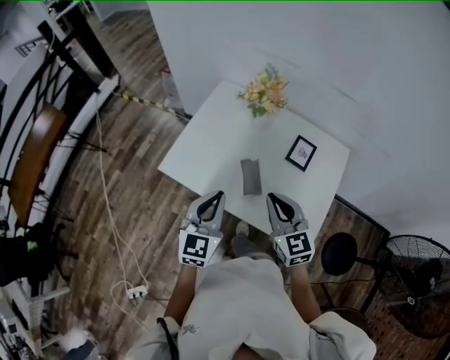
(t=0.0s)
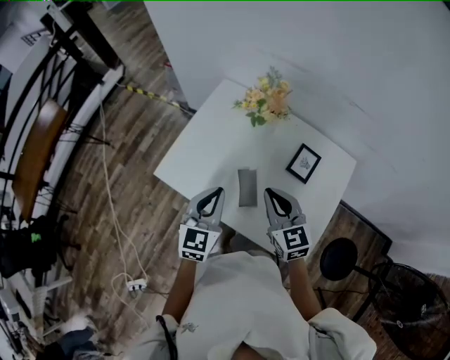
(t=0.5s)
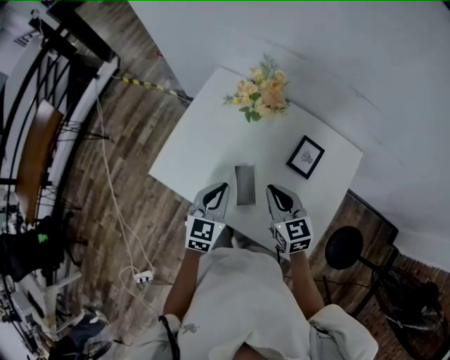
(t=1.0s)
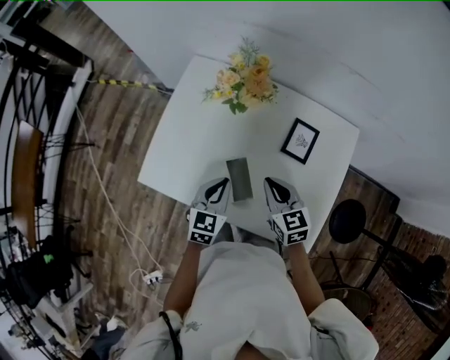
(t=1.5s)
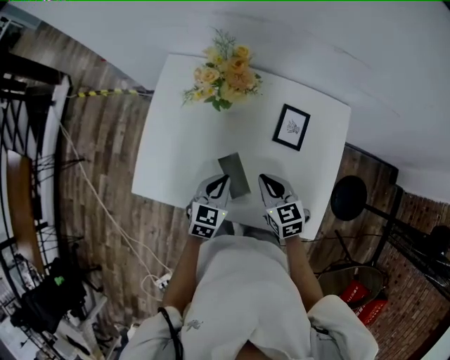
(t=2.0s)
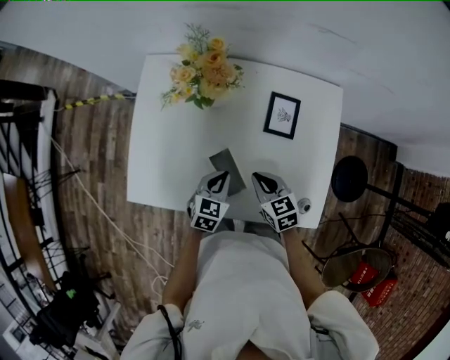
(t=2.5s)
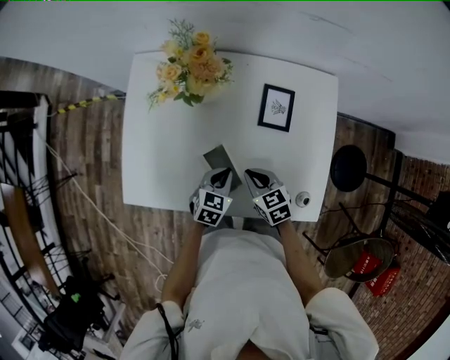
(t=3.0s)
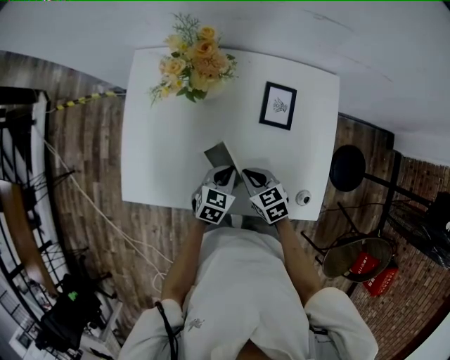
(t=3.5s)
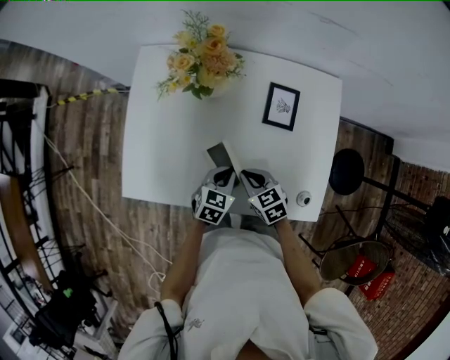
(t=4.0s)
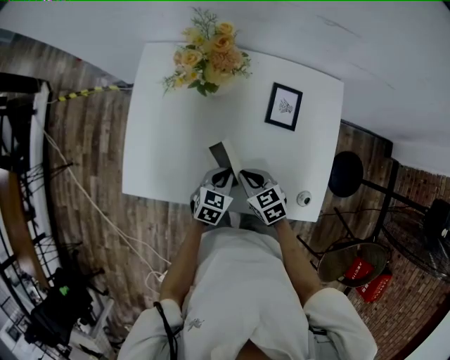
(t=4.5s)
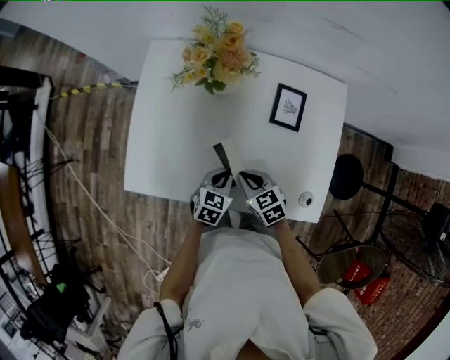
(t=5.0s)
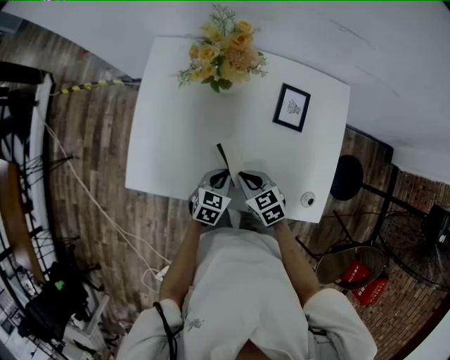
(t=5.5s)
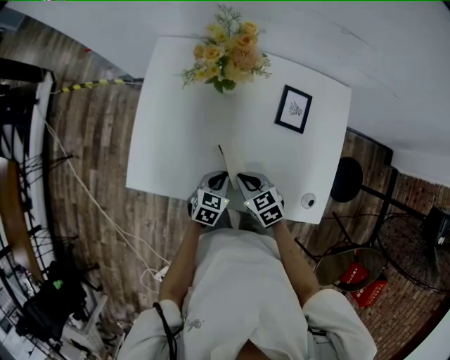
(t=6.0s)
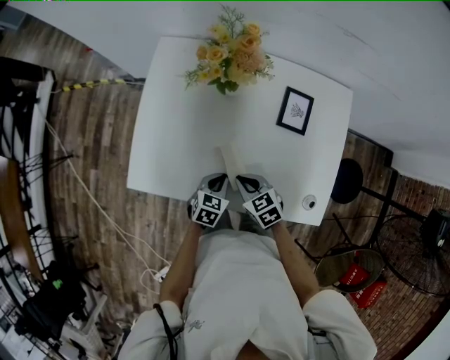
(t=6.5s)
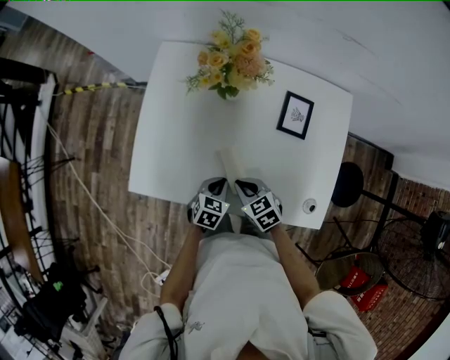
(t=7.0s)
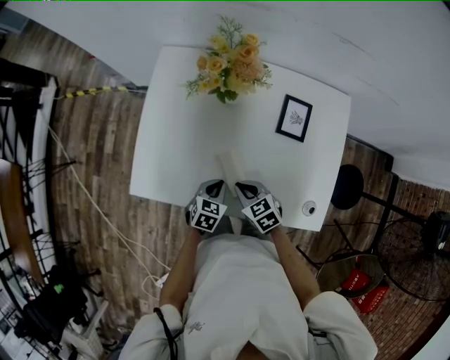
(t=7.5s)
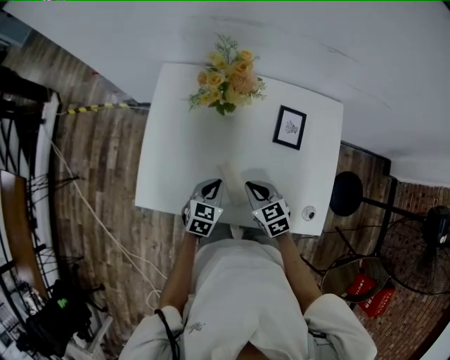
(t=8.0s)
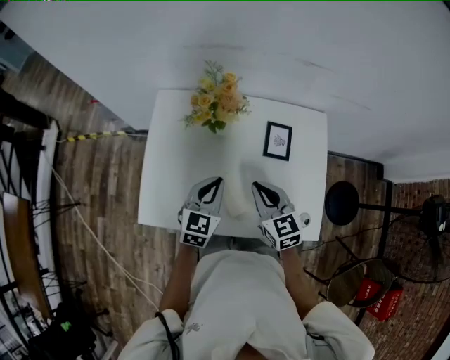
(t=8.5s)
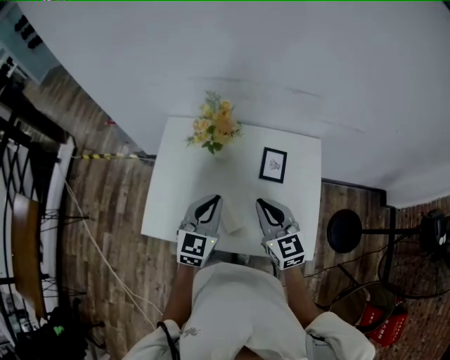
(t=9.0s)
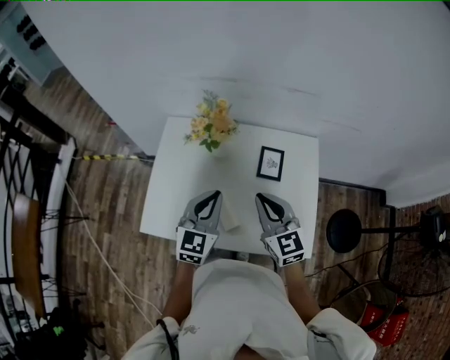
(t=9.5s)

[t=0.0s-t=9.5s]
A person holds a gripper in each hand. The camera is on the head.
t=0.0s to t=2.0s: The right gripper moves downward and forward, some 20 cm, and changes its angle by approximately 30 degrees, while the left gripper goes some 25 cm downward, forward and to the right, and rotates approximately 30 degrees.
t=2.0s to t=4.0s: Both grippers move downward, some 5 cm.
t=4.0s to t=5.5s: The left gripper shifts by approximately 5 cm.
t=5.5s to t=7.5s: There are only small adjustments of the grippers.
t=7.5s to t=9.5s: Both grippers travel together upward, roughly 30 cm. The right gripper tilts its fingers some 40 degrees upward. Meanwhile the left gripper tilts its fingers approximately 40 degrees upward.

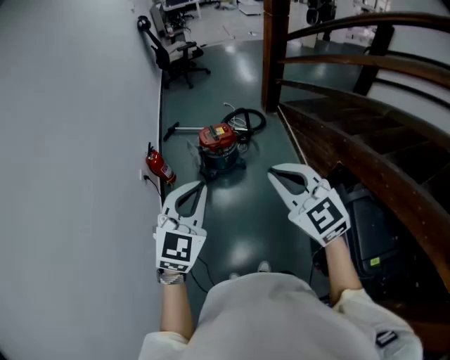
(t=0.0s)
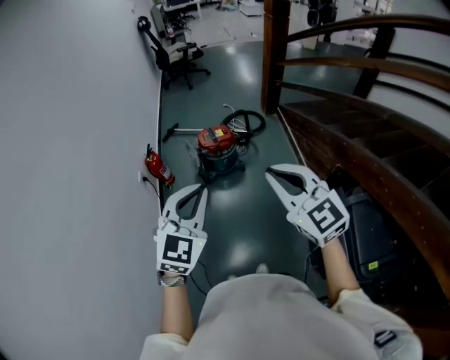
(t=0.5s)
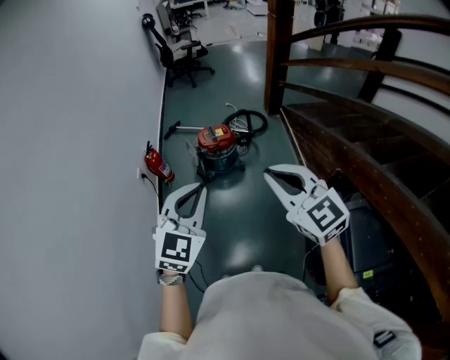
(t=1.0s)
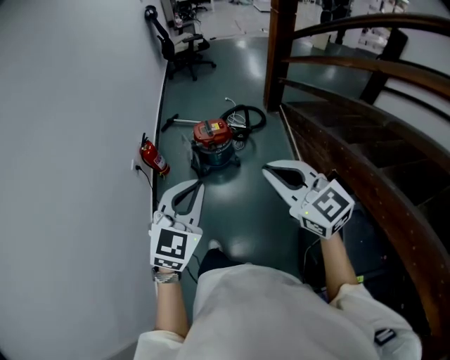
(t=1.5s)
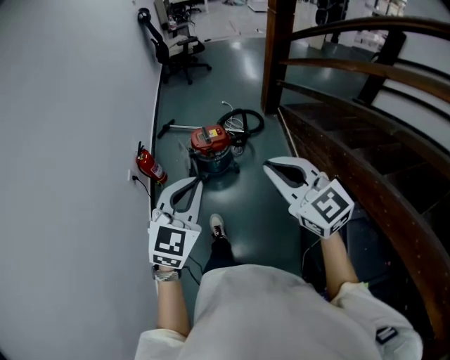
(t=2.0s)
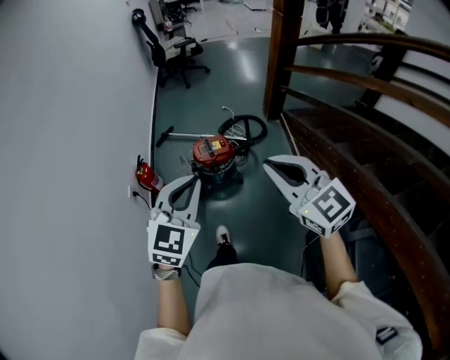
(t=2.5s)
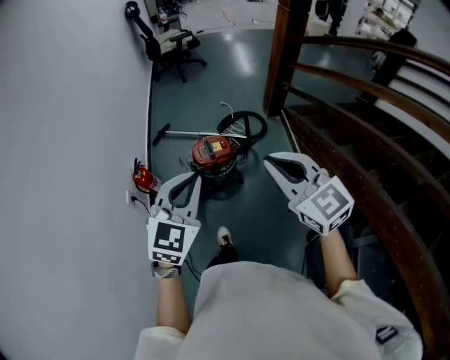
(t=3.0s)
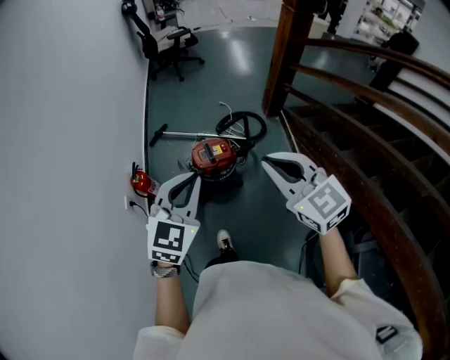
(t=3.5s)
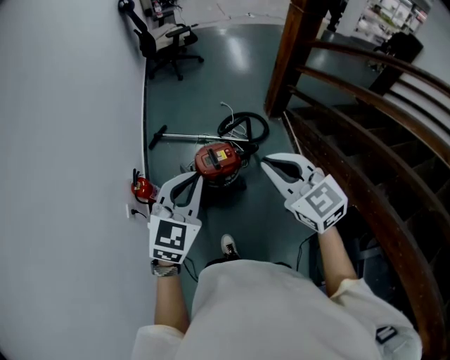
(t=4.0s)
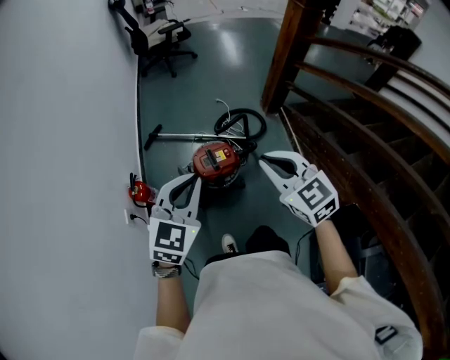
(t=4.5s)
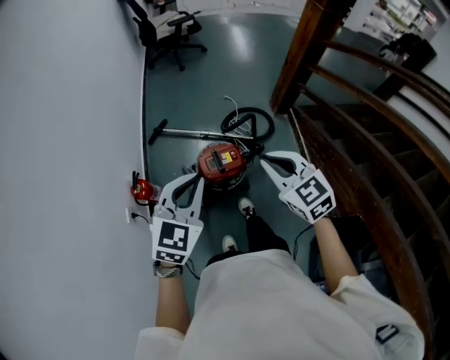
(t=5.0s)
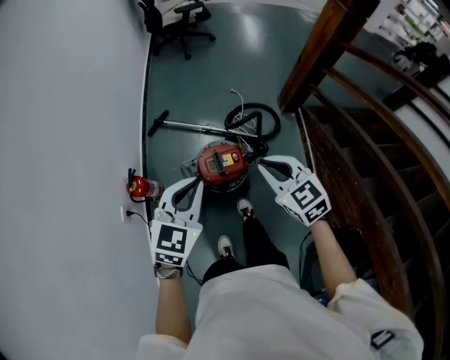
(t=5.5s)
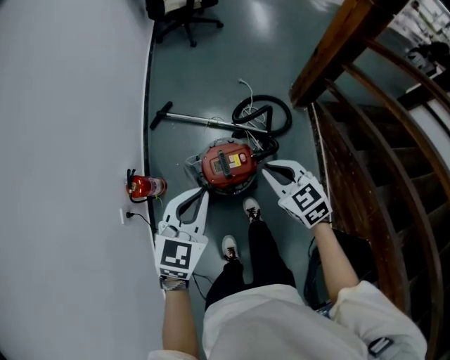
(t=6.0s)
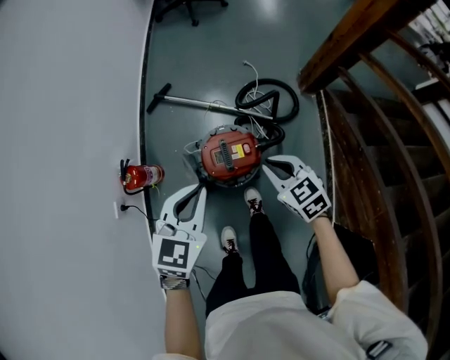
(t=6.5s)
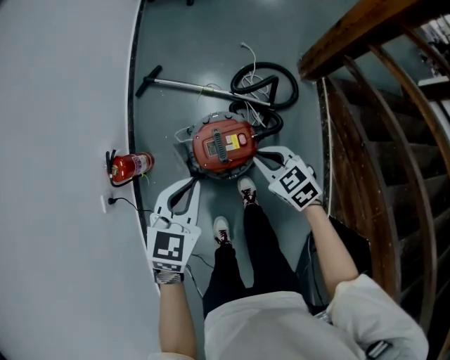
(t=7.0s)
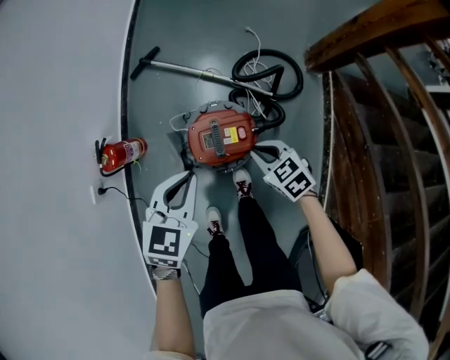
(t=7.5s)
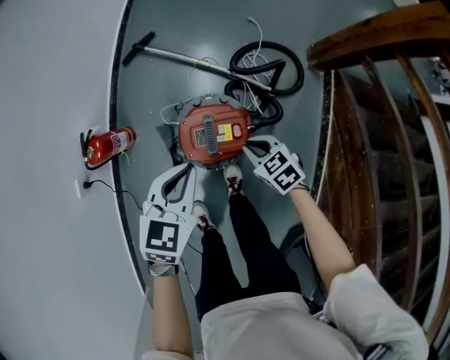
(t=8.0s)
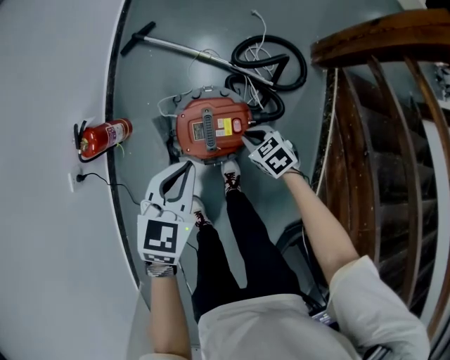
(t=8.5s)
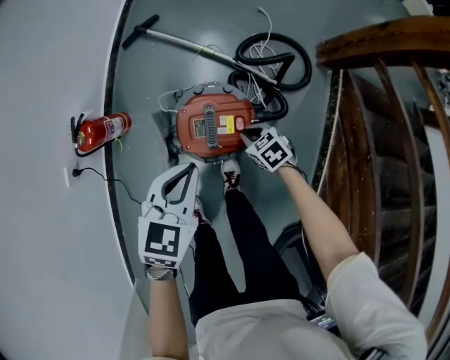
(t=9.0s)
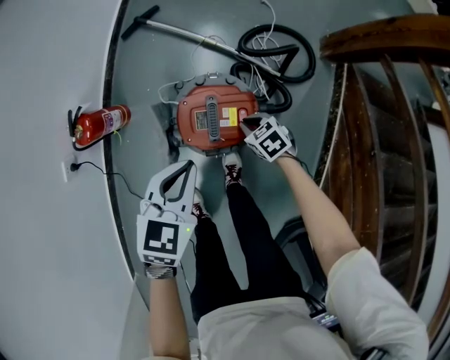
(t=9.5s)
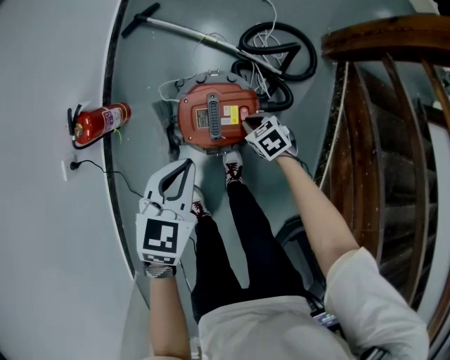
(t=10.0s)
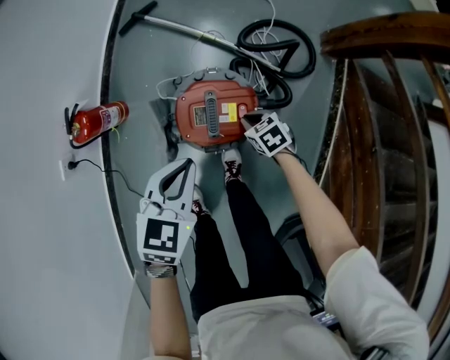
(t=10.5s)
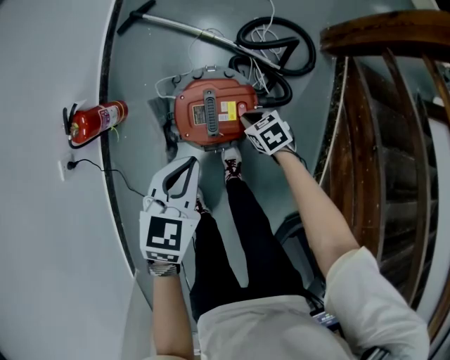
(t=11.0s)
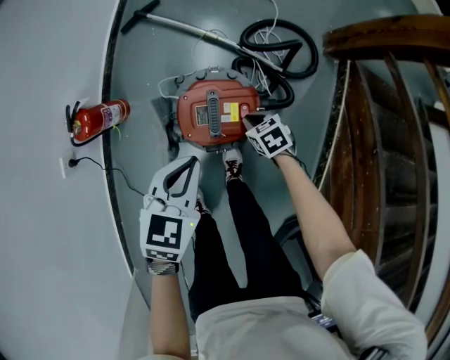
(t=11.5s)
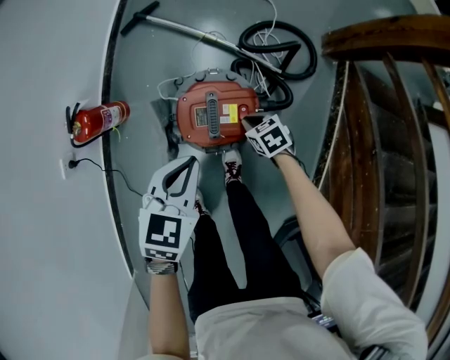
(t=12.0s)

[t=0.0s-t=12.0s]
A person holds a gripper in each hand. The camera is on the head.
t=0.0s to t=2.0s: The grippers both shift forward and to the right by approximately 10 cm.
t=2.0s to t=4.0s: The two grippers go approximately 35 cm forward.
t=4.0s to t=6.0s: The right gripper goes roughly 35 cm downward and forward, and swivels about 20 degrees. Meanwhile the left gripper shifts about 25 cm forward and downward.
t=6.0s to t=8.0s: The grippers both shift downward by some 25 cm. The right gripper turns by about 30 degrees, while the left gripper turns by roughly 20 degrees.
t=8.0s to t=10.0s: The right gripper travels downward by roughly 15 cm, while the left gripper shifts approximately 5 cm downward.
t=10.0s to t=12.0s: The grippers make only small movements.

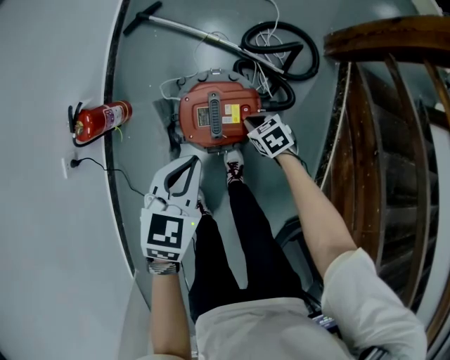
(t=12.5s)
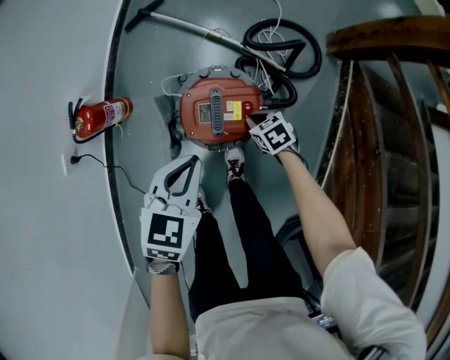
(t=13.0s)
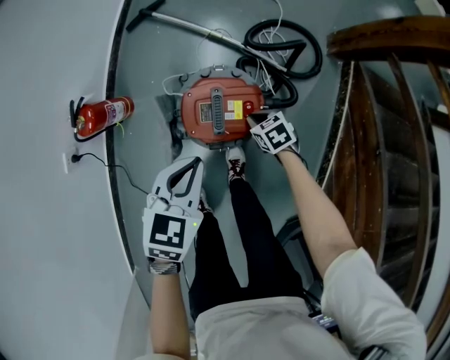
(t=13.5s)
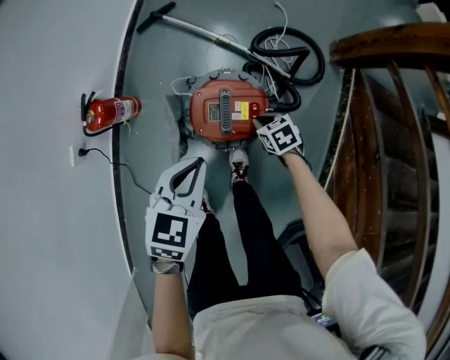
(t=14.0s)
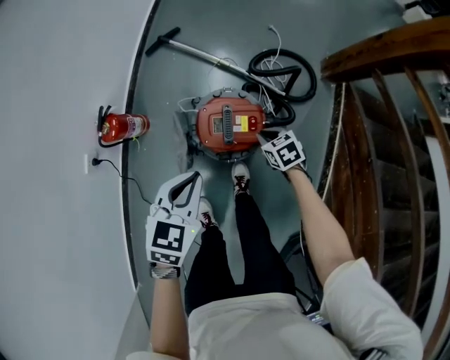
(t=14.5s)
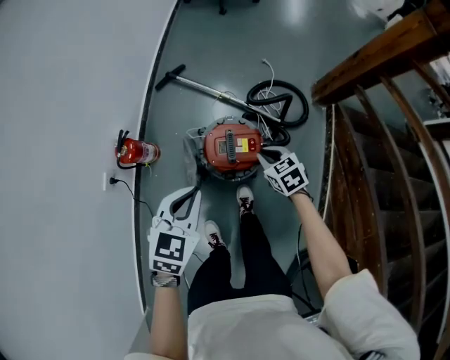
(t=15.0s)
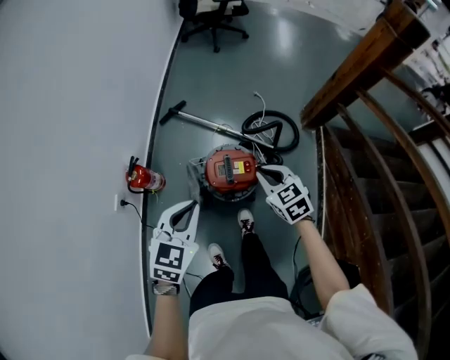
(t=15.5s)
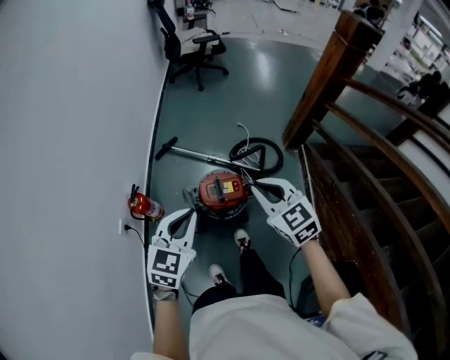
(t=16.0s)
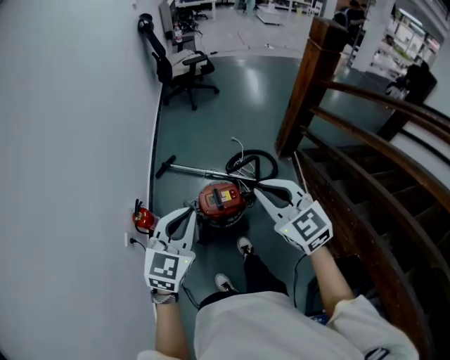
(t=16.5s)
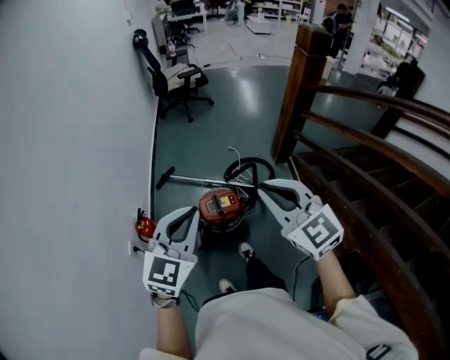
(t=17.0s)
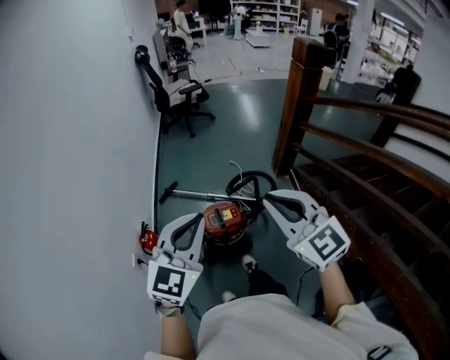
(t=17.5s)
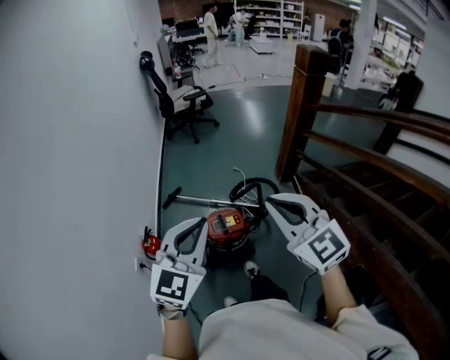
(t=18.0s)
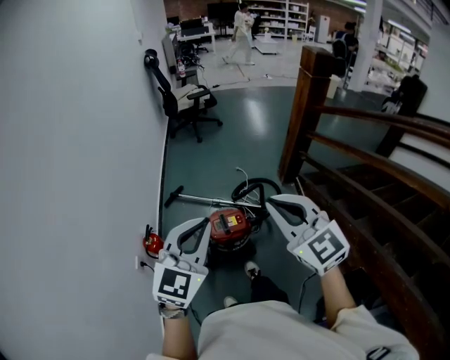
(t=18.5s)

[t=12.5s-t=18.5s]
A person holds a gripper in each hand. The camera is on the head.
t=12.5s to t=14.5s: The left gripper travels upward and to the left by some 10 cm; the right gripper travels upward by approximately 10 cm.
t=14.5s to t=16.5s: The right gripper heads upward, covering some 60 cm, and points its fingers roughly 50 degrees further upward. The left gripper goes approximately 35 cm upward, and changes its angle by roughly 30 degrees.
t=16.5s to t=18.5s: The left gripper travels upward by about 10 cm, while the right gripper shifts roughly 10 cm upward and backward.
